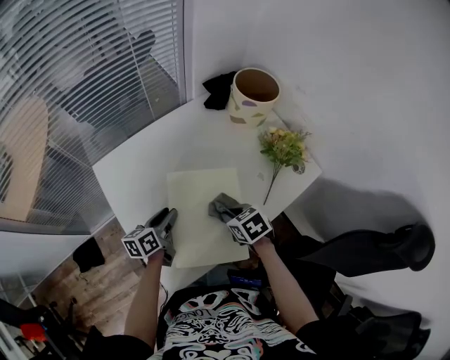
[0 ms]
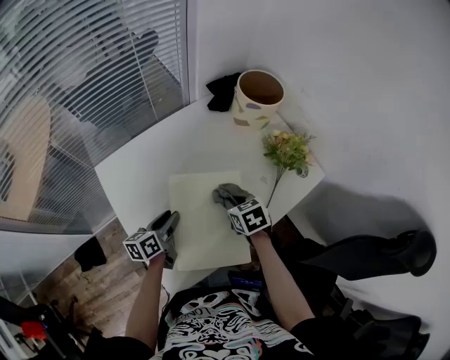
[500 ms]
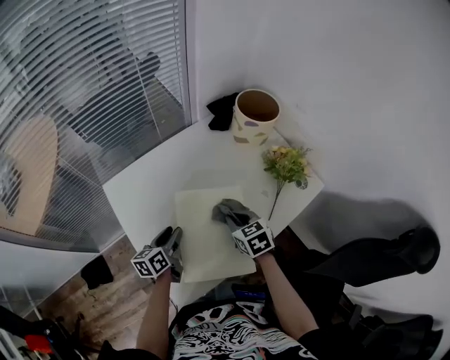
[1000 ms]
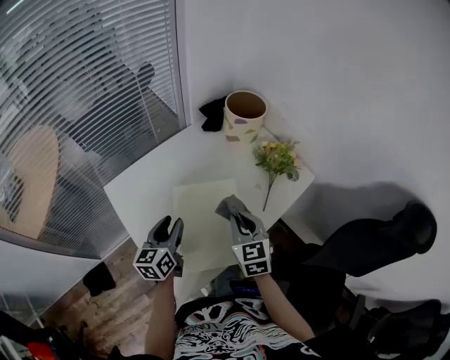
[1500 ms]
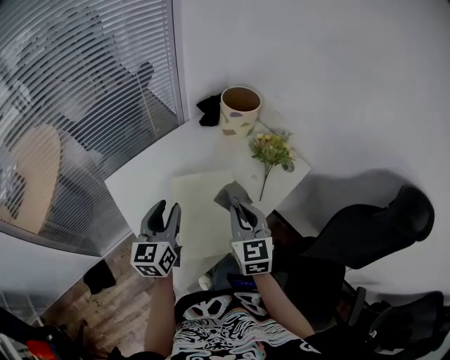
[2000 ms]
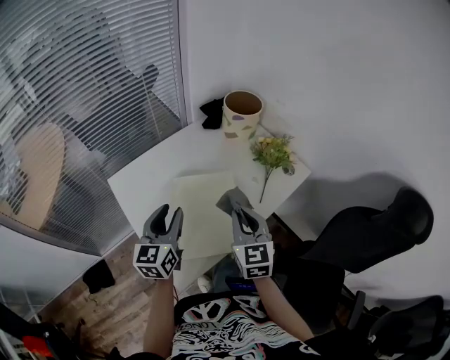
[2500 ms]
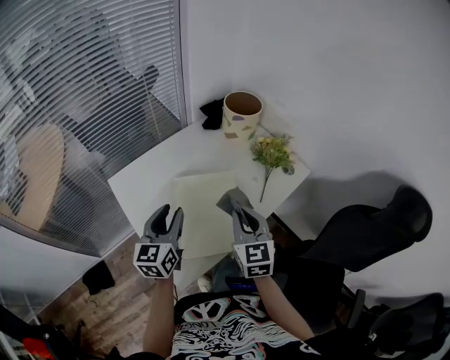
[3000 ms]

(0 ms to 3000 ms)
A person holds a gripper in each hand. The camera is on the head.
0 ms - 1500 ms: The two grippers go about 10 cm upward. The right gripper points its fingers approximately 30 degrees further upward, while the left gripper swivels some 20 degrees.
1500 ms - 3000 ms: The left gripper travels upward by roughly 10 cm. The right gripper shifts approximately 10 cm upward and backward.

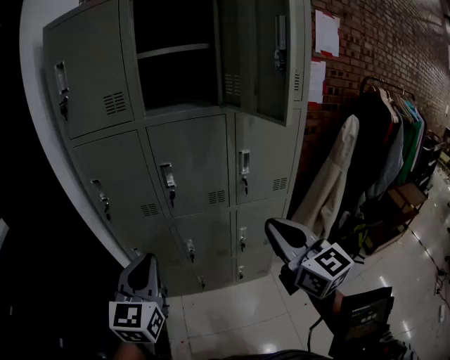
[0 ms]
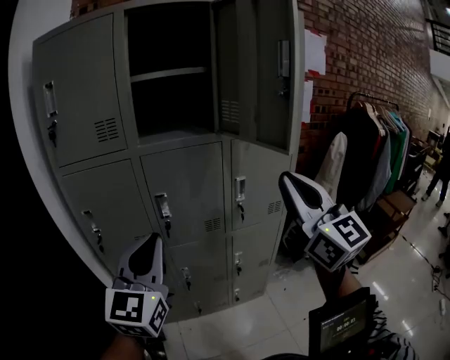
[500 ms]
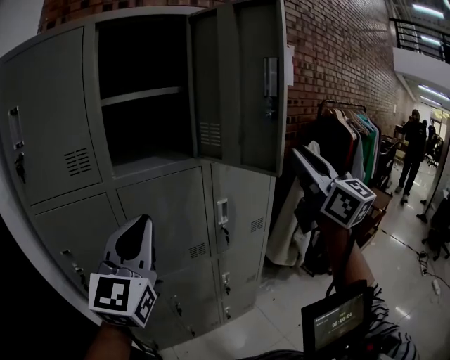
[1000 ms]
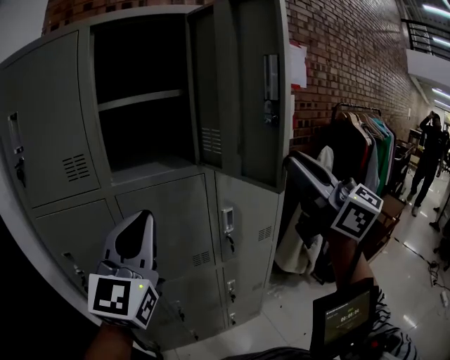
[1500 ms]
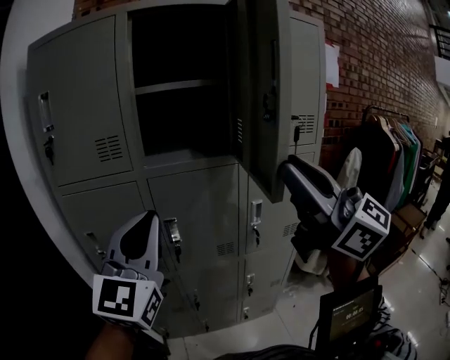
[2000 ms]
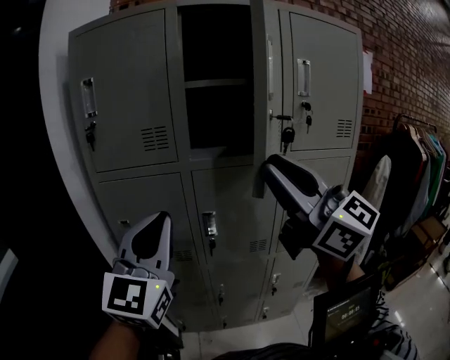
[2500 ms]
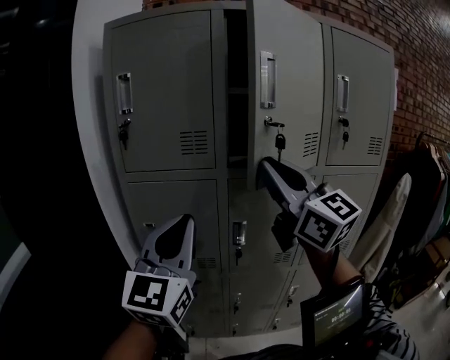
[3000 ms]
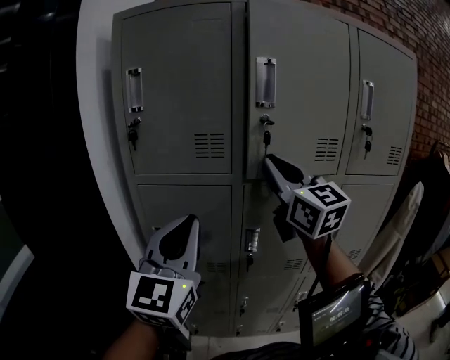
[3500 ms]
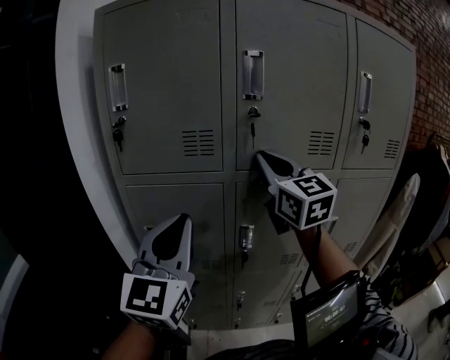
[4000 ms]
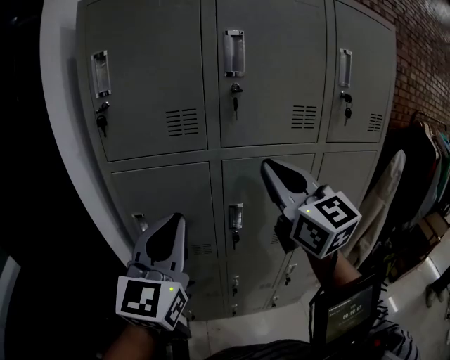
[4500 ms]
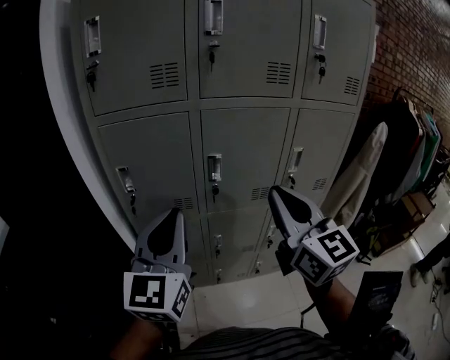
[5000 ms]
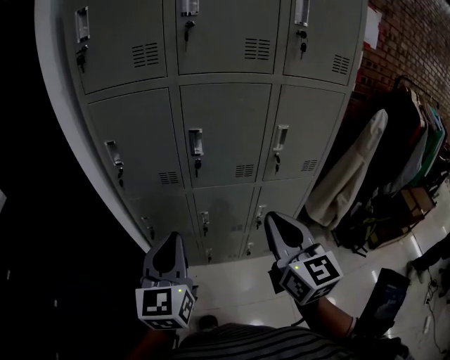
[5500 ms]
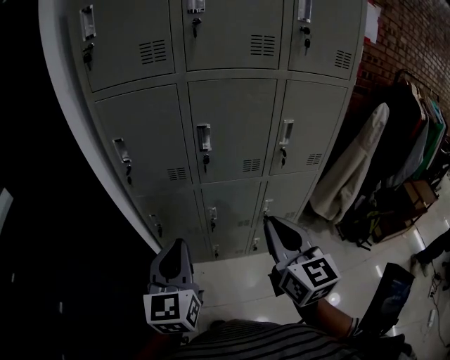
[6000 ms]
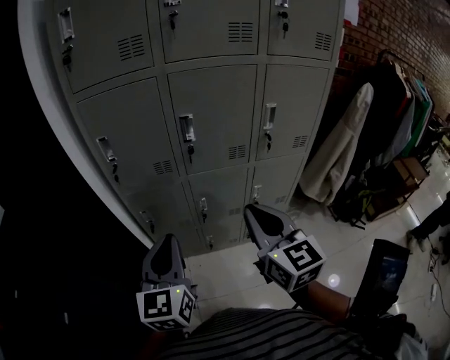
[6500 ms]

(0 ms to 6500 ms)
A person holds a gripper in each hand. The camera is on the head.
0 ms - 2000 ms: The grippers both shift upward and forward by approximately 25 cm. The right gripper turns by roughly 30 degrees; the left gripper rotates roughly 20 degrees.
2000 ms - 4500 ms: The right gripper goes roughly 25 cm forward and to the left, while the left gripper is displaced to the left and forward by roughly 15 cm.
4500 ms - 6500 ms: Both grippers travel together downward and backward, approximately 30 cm. The left gripper turns by some 20 degrees. Meanwhile the right gripper changes its angle by roughly 20 degrees.

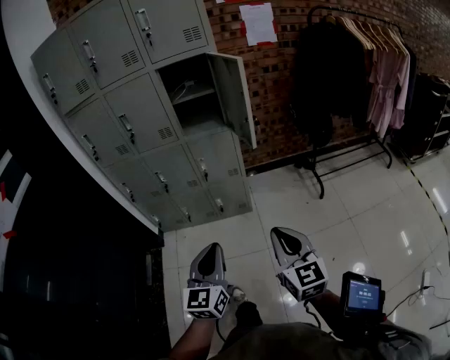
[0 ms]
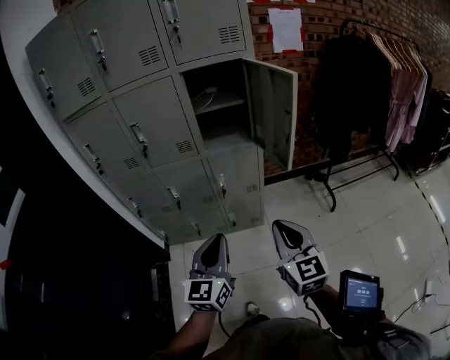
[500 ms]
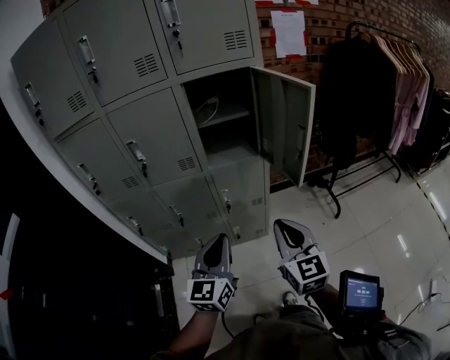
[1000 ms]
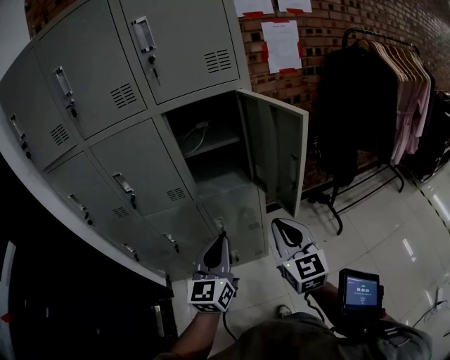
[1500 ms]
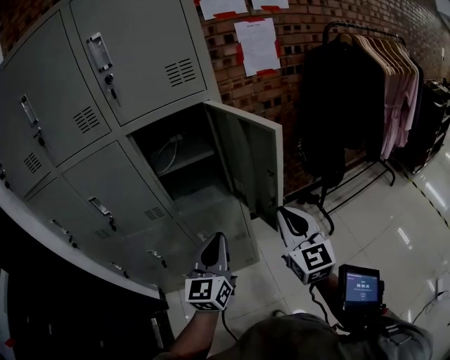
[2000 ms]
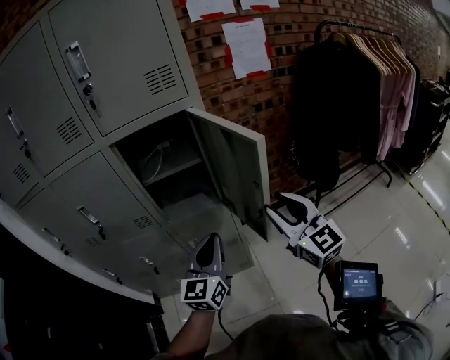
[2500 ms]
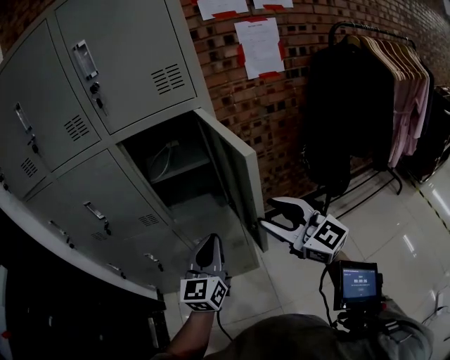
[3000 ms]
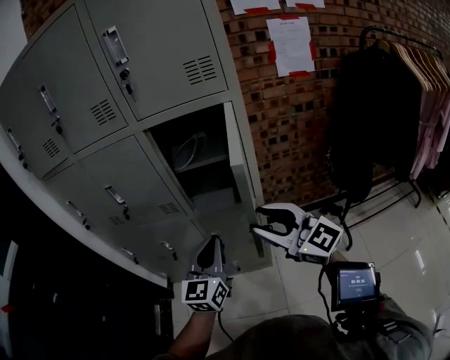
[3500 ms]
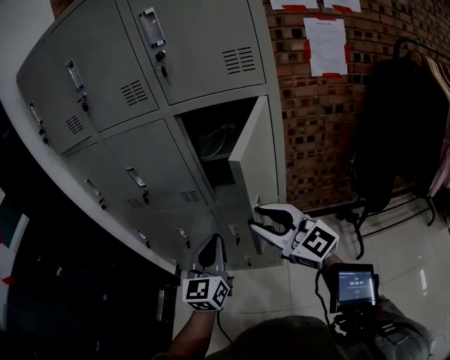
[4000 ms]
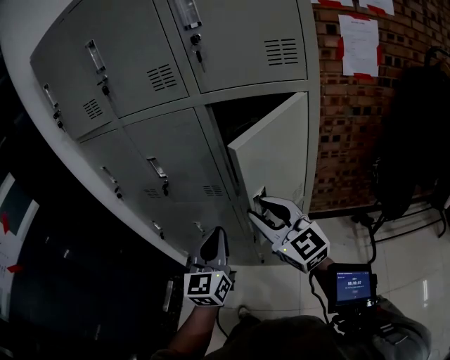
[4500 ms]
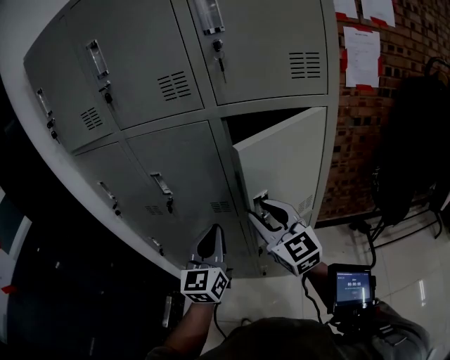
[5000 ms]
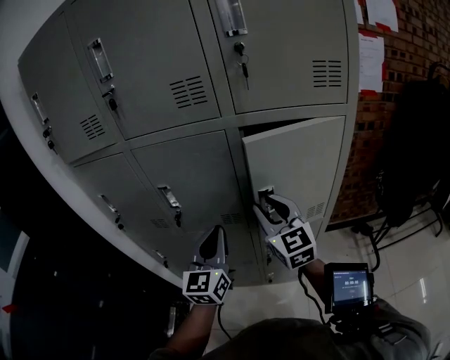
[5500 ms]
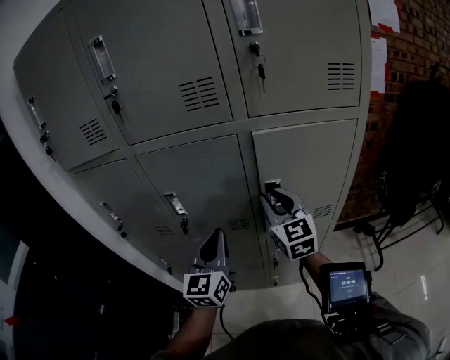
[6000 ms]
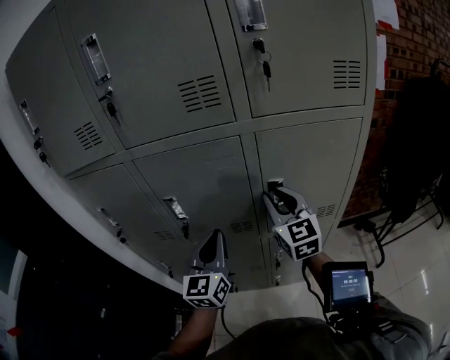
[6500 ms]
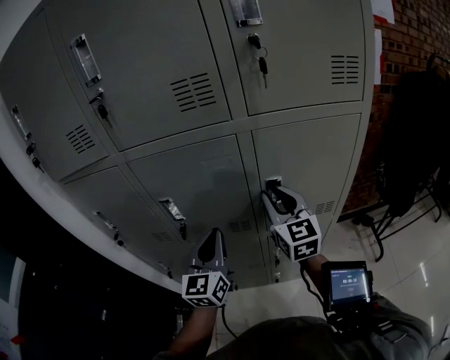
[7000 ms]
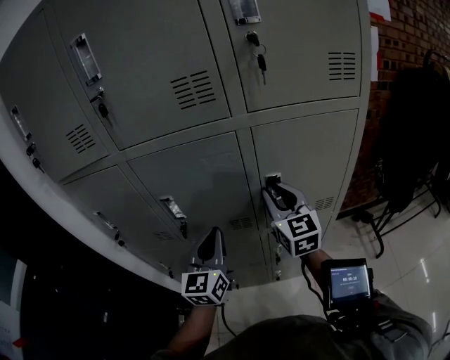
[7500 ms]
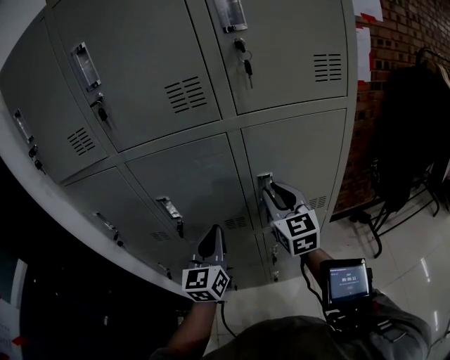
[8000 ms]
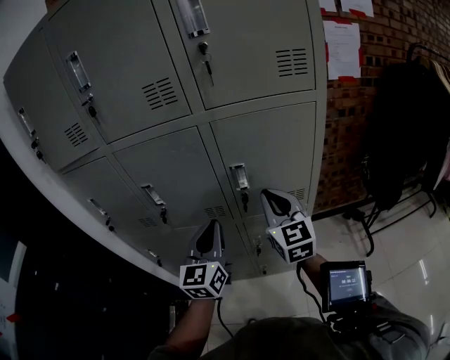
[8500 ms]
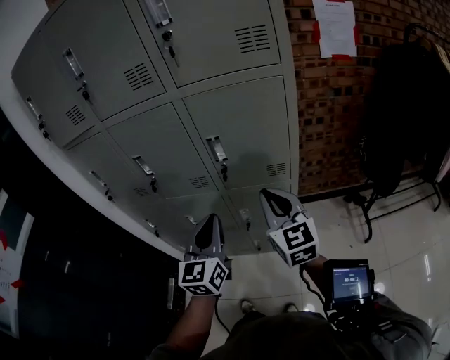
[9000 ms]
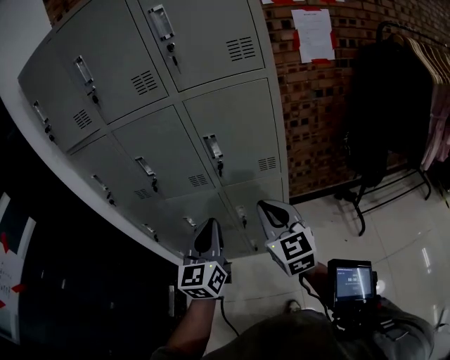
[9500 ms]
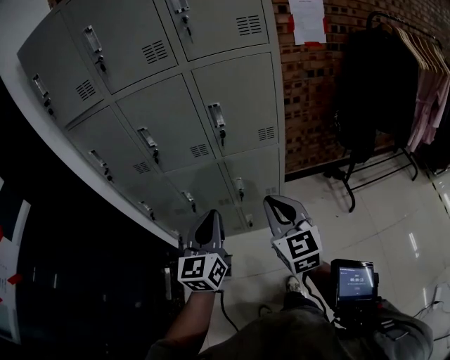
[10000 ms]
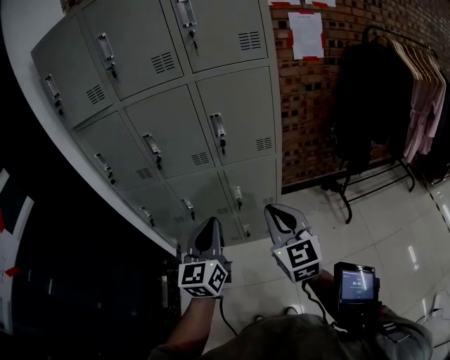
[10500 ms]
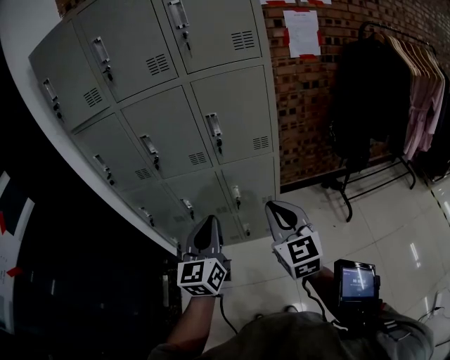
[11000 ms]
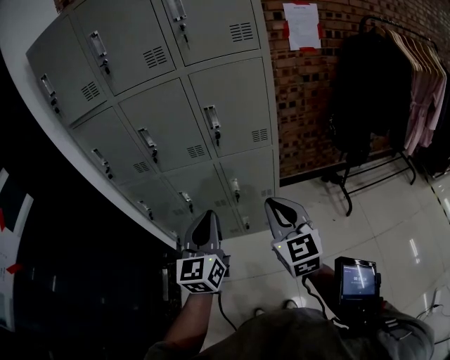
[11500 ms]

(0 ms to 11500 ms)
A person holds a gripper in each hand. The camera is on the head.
0 ms - 2000 ms: The two grippers travel together, forward, some 40 cm.
2000 ms - 4000 ms: The left gripper ends up roughly 10 cm from where it was, and swivels some 20 degrees; the right gripper ends up about 15 cm from where it was, turns by approximately 50 degrees, and opens up.
4000 ms - 6000 ms: The left gripper goes about 25 cm forward and to the left, while the right gripper moves forward, some 25 cm, and turns by roughly 40 degrees.
6000 ms - 7500 ms: The grippers make only small movements.
7500 ms - 9500 ms: The grippers both shift backward and to the right by roughly 30 cm. The right gripper closes its fingers.
9500 ms - 11500 ms: Both grippers move backward, roughly 10 cm.

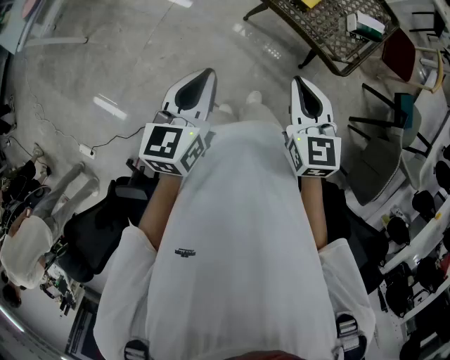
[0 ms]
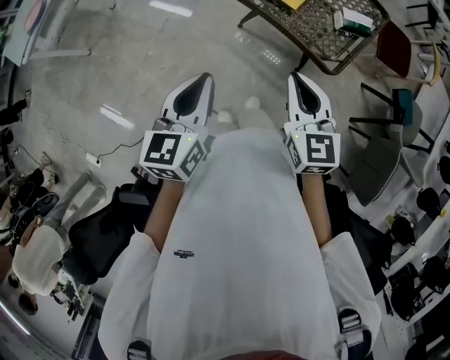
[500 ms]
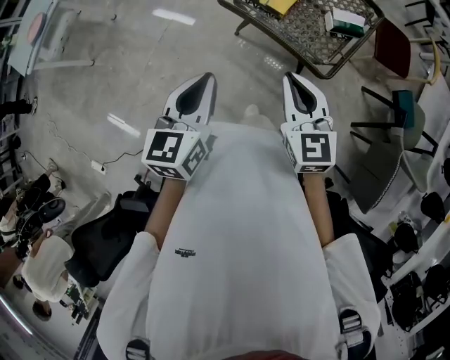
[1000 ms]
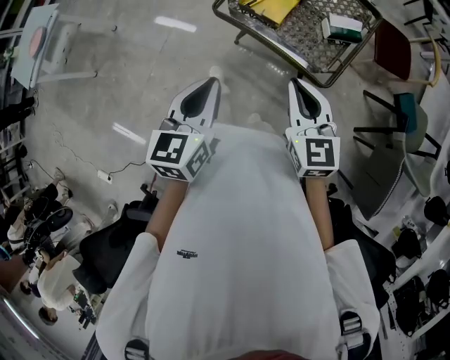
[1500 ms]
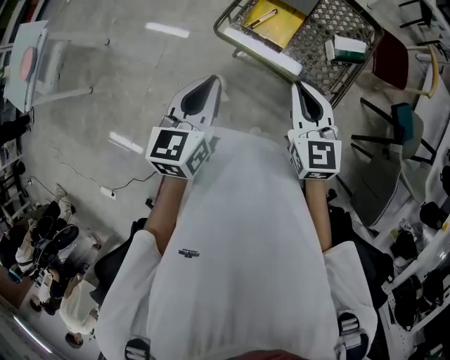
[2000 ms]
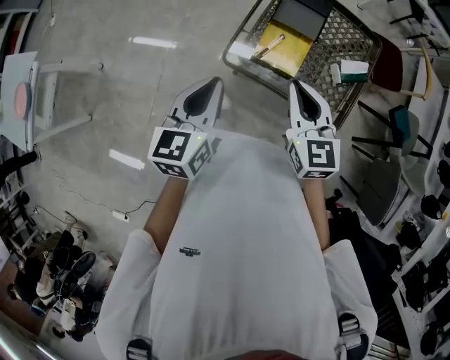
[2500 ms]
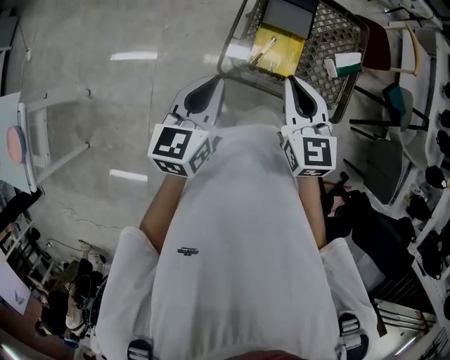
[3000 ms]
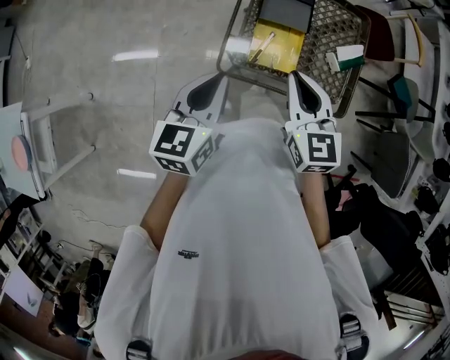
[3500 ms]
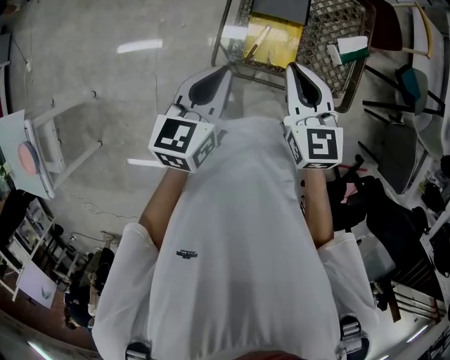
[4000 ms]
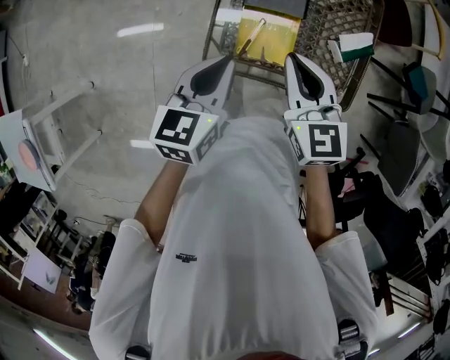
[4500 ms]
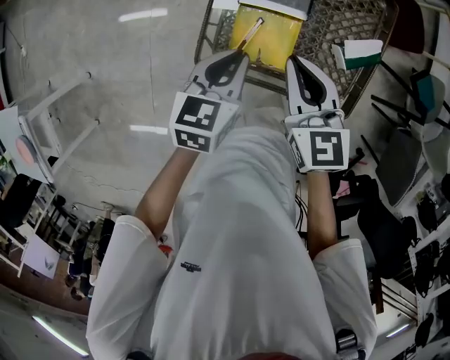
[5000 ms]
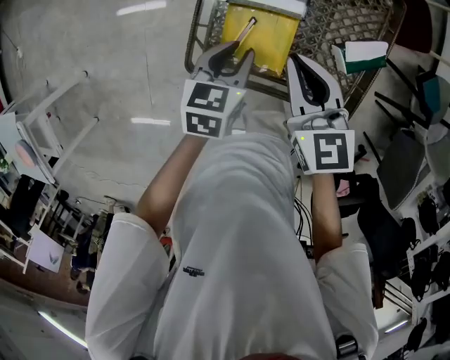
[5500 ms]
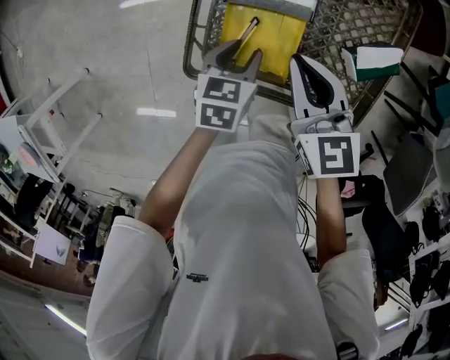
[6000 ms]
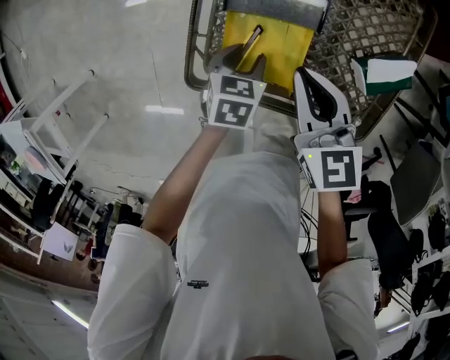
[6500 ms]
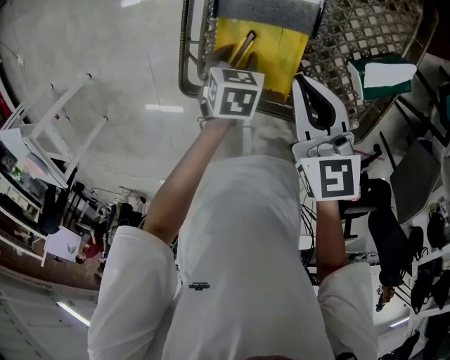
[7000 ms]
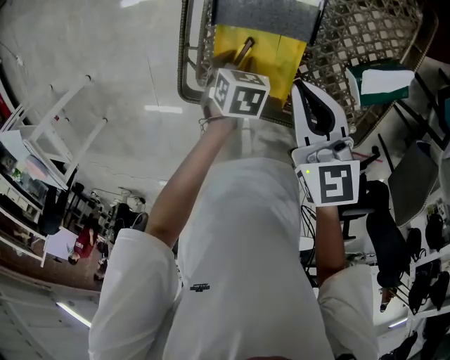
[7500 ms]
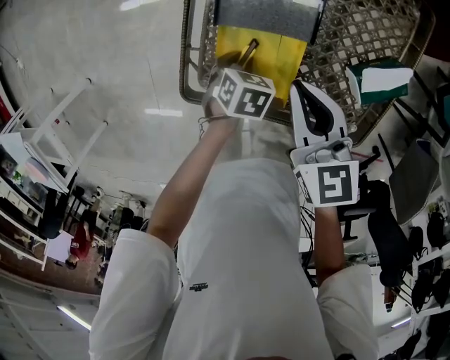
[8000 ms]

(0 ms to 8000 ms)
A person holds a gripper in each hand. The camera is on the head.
0 ms - 2000 ms: Both grippers move forward and to the right, approximately 20 cm.
2000 ms - 4000 ms: The left gripper heads forward, covering about 25 cm, and rotates approximately 30 degrees. The right gripper shifts roughly 20 cm forward and to the left.
4000 ms - 6000 ms: The grippers both shift downward, forward and to the right by approximately 25 cm. The left gripper turns by some 30 degrees, and opens.
6000 ms - 8000 ms: The left gripper shifts approximately 10 cm downward, and turns by about 30 degrees.
